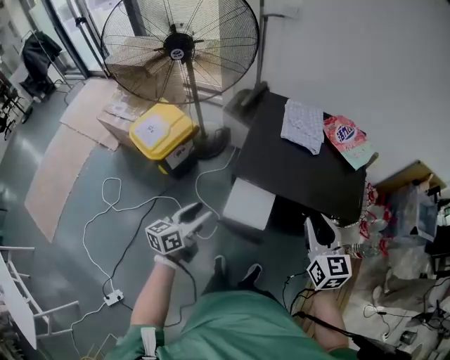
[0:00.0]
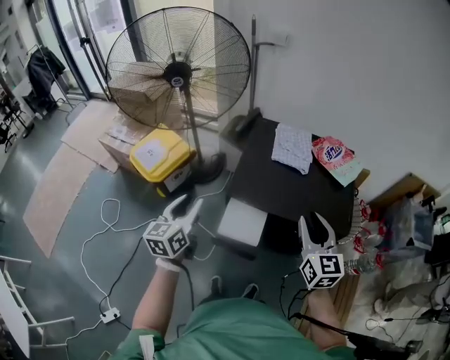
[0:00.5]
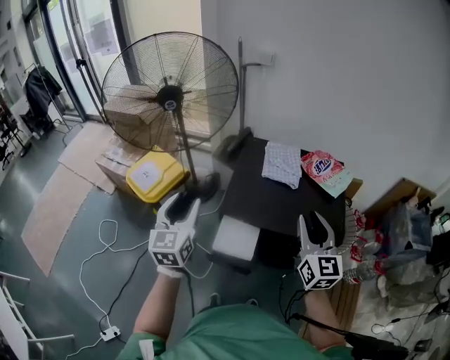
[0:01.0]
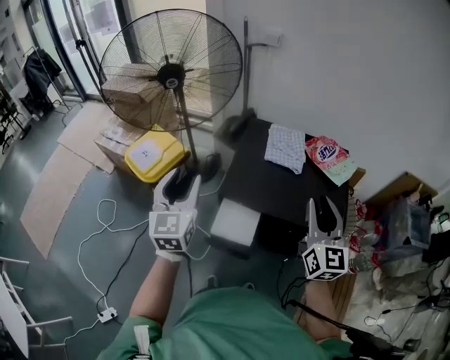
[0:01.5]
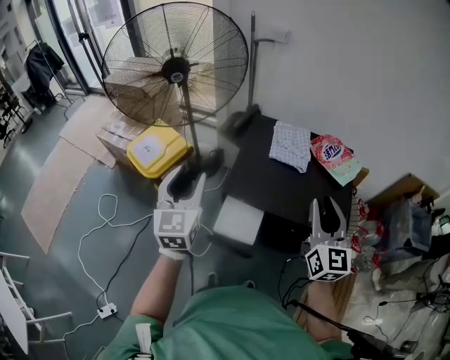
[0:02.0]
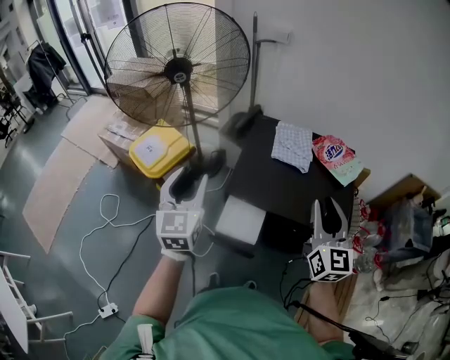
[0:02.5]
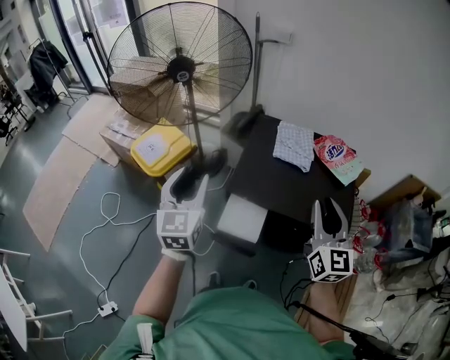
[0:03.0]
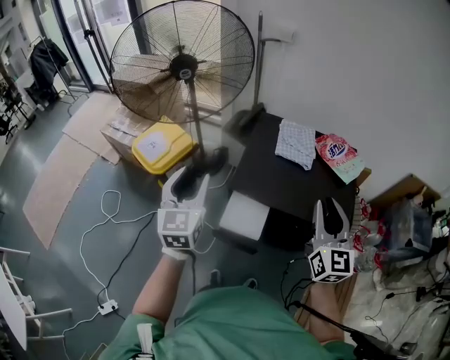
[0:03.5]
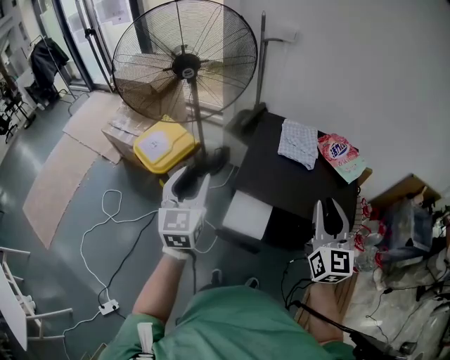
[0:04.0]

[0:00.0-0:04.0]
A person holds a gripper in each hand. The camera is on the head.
0:00.0 to 0:02.0: The right gripper is displaced upward and forward by some 15 cm, and rotates approximately 20 degrees. The left gripper goes roughly 20 cm upward, and rotates approximately 50 degrees.
0:02.0 to 0:04.0: The grippers make only small movements.

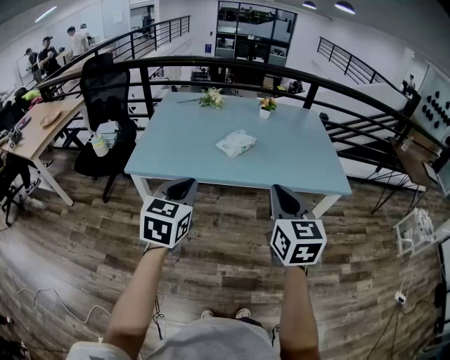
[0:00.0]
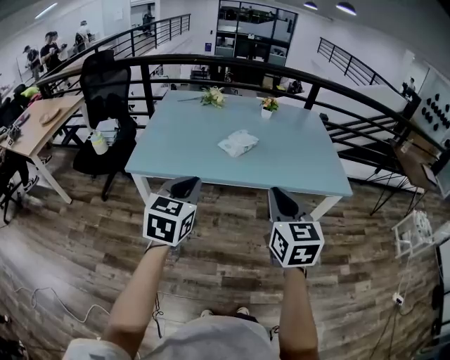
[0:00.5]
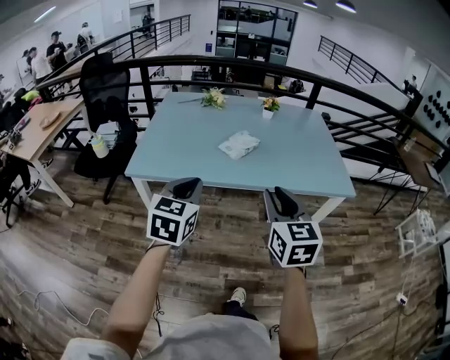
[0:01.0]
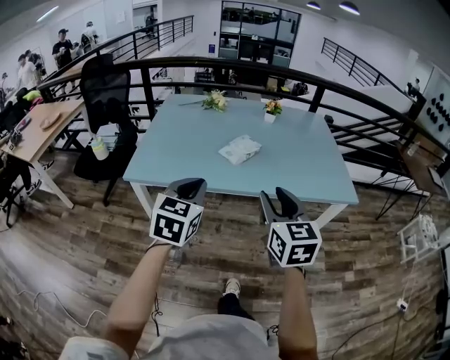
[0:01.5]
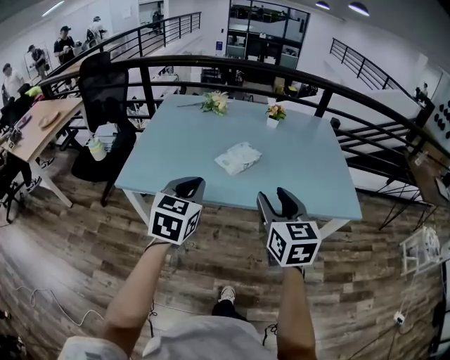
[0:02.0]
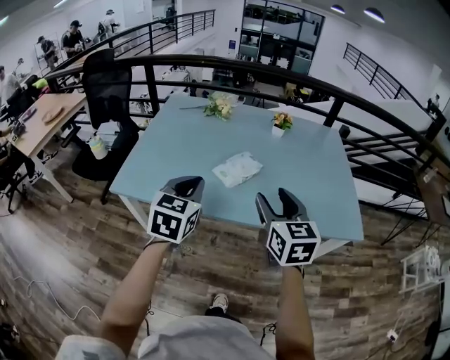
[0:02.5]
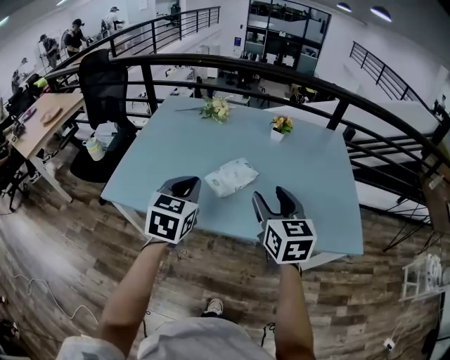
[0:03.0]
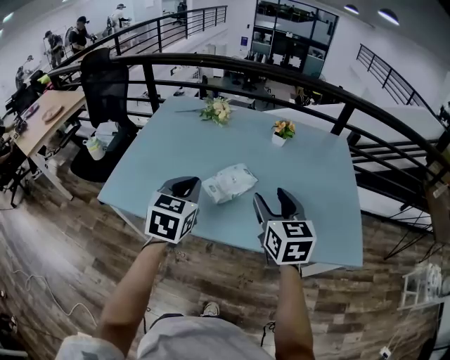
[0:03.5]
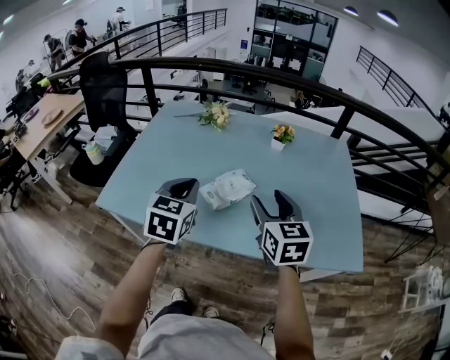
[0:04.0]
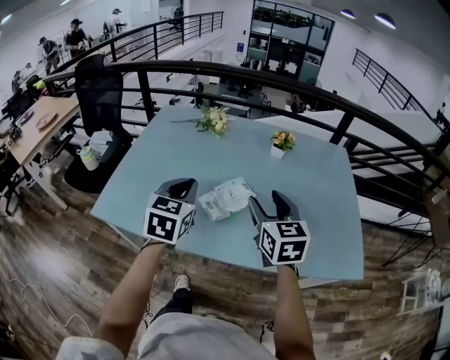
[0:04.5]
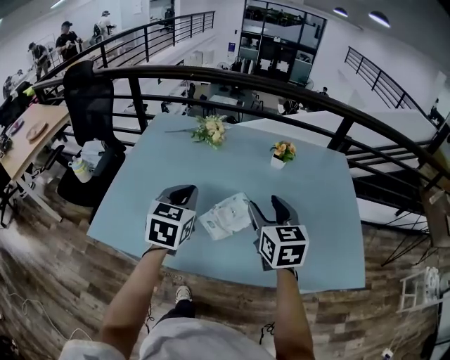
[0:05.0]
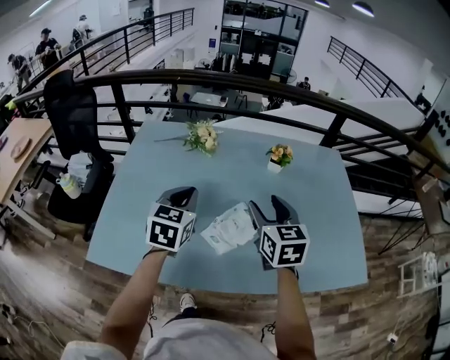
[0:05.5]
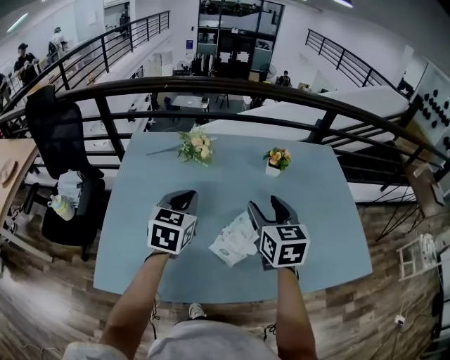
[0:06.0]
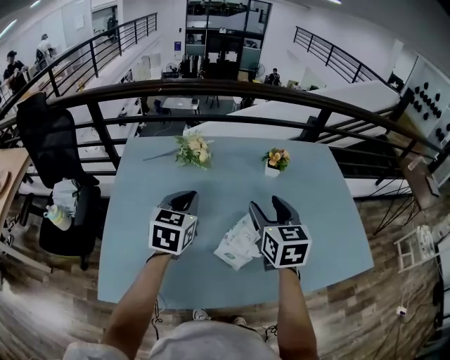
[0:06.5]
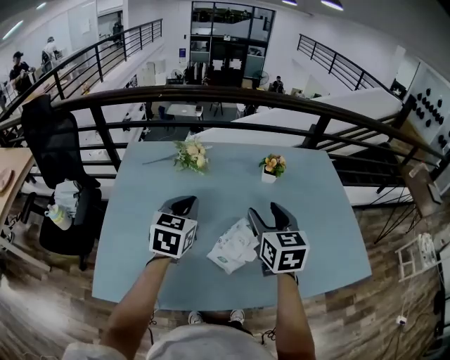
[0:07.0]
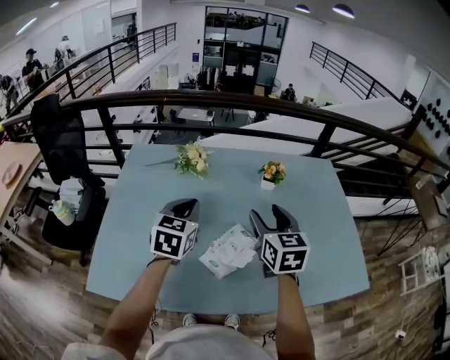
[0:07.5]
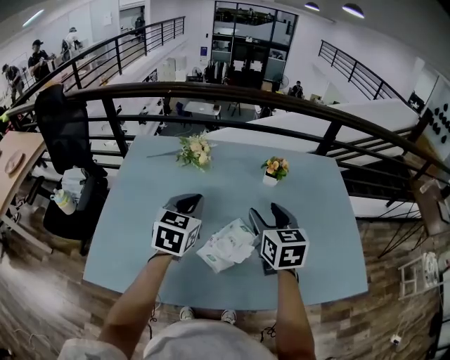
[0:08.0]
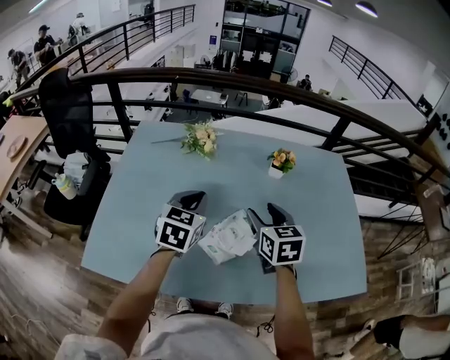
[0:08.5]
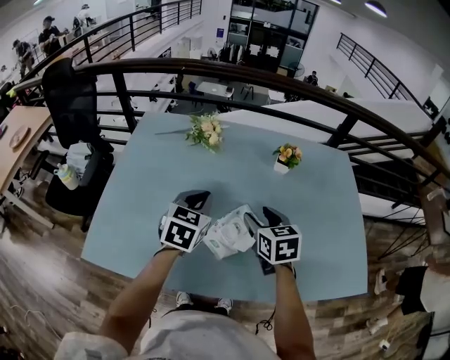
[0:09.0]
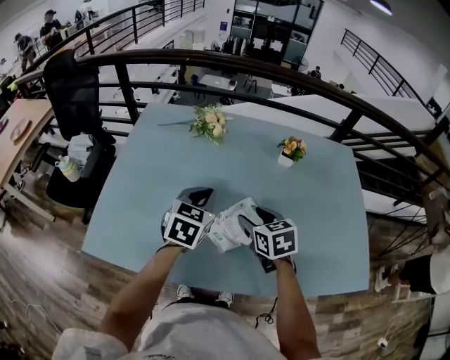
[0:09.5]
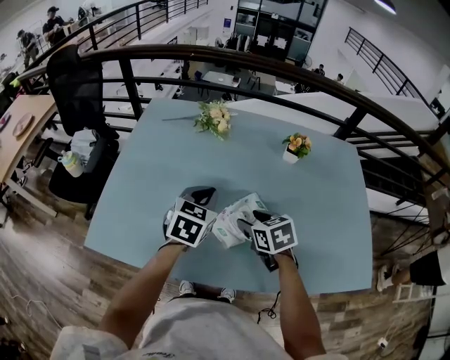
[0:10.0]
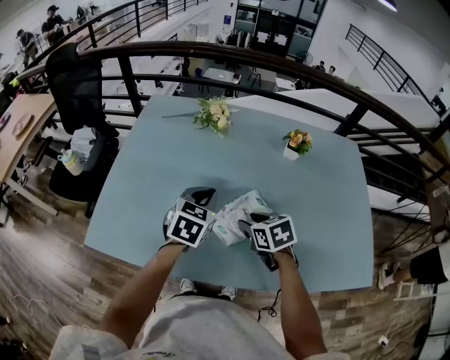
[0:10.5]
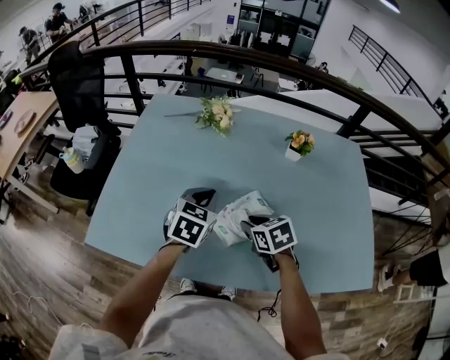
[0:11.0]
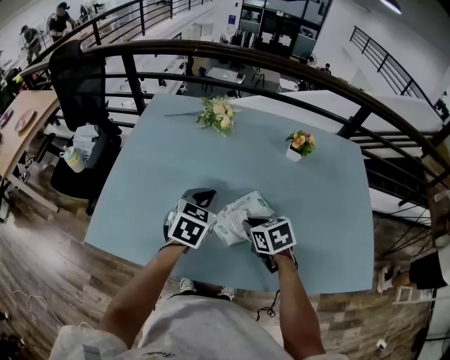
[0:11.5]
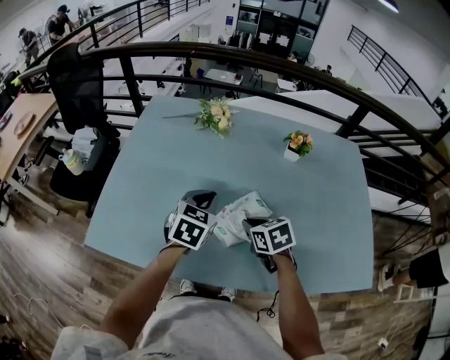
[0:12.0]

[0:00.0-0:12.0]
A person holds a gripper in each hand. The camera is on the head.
0:00.0 to 0:02.0: Both grippers travel together forward, roughly 15 cm. The right gripper opens up.
0:02.0 to 0:04.0: Both grippers move forward, some 20 cm.
0:04.0 to 0:06.0: The left gripper moves forward, some 20 cm. Meanwhile the right gripper shifts approximately 20 cm forward and to the left.
0:06.0 to 0:08.0: The grippers stay close to where they were, moving slightly.
0:08.0 to 0:10.0: The left gripper is displaced downward by about 10 cm; the right gripper goes roughly 15 cm downward and to the left, and rotates some 30 degrees.
0:10.0 to 0:12.0: The right gripper closes its fingers.

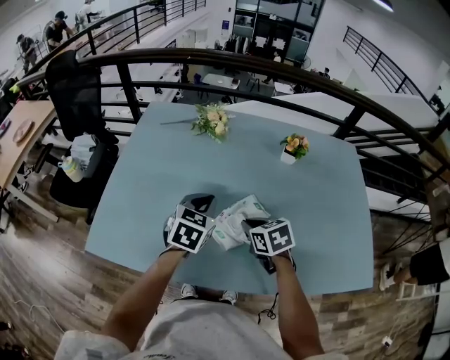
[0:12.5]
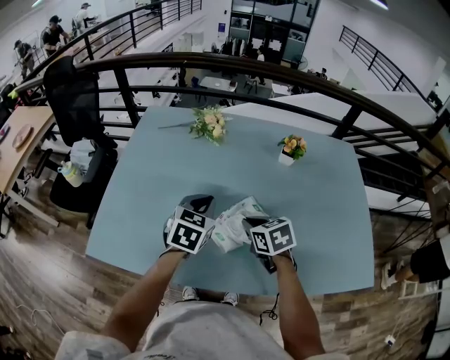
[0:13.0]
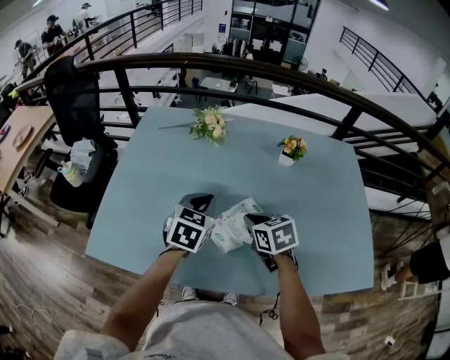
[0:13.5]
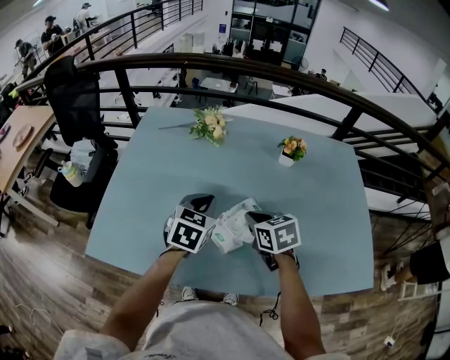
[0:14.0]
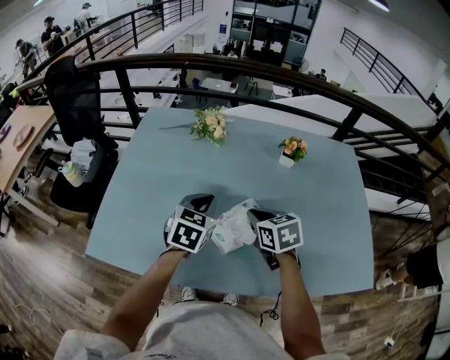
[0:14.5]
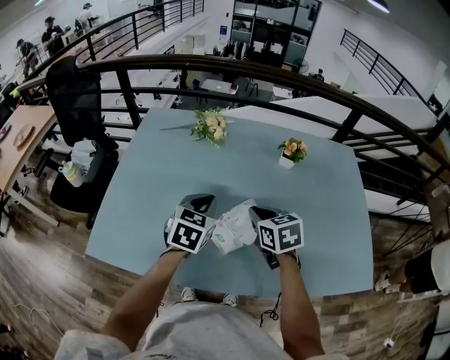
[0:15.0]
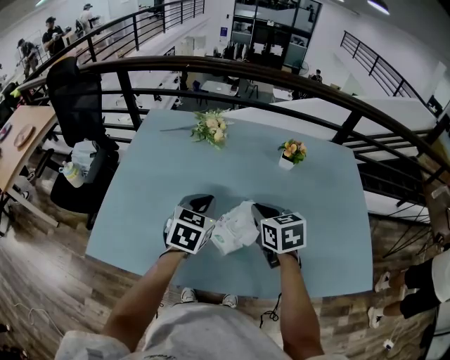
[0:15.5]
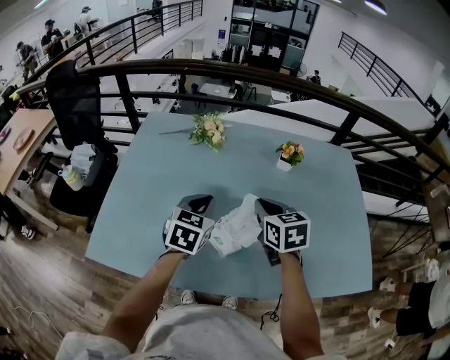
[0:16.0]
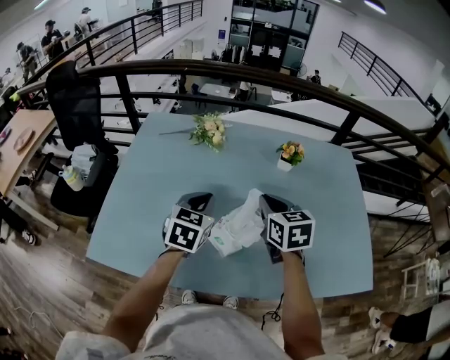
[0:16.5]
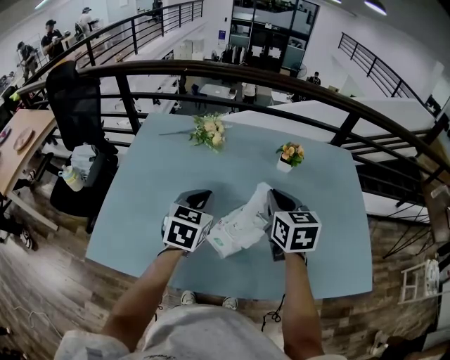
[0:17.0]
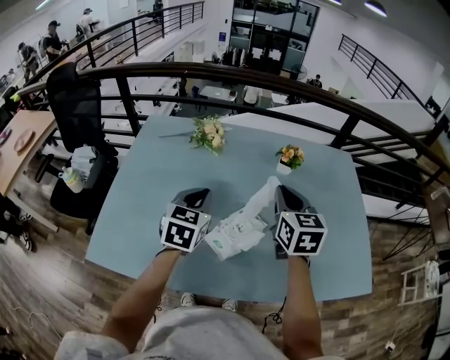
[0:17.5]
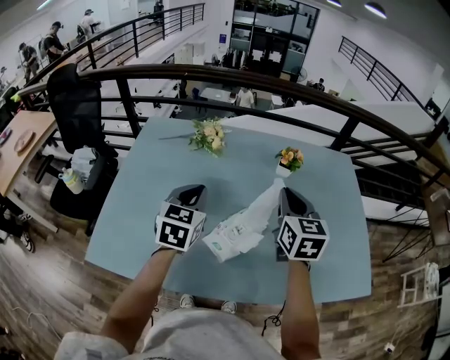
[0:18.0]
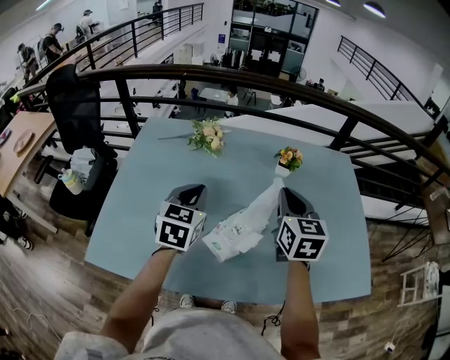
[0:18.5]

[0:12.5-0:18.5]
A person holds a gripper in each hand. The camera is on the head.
0:12.5 to 0:14.5: The right gripper ends up roughly 5 cm from where it was.
0:14.5 to 0:16.5: The right gripper heads upward, covering roughly 5 cm.
0:16.5 to 0:18.5: The left gripper ends up approximately 5 cm from where it was, while the right gripper moves upward and to the right, some 10 cm.

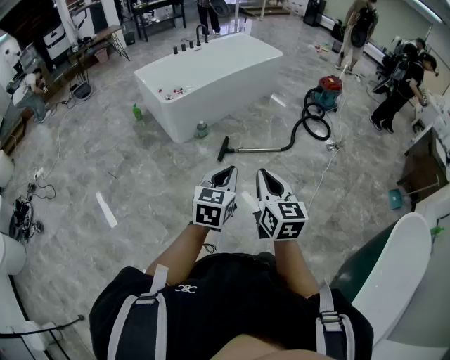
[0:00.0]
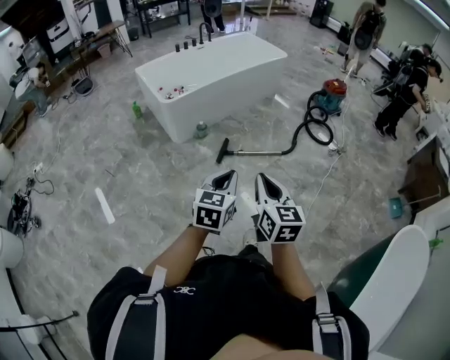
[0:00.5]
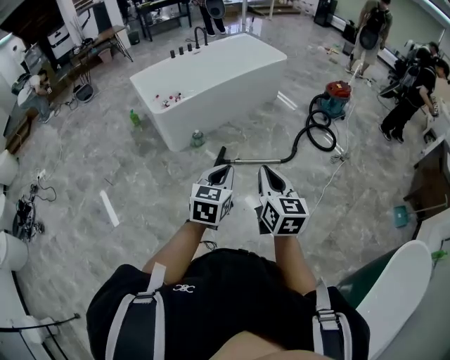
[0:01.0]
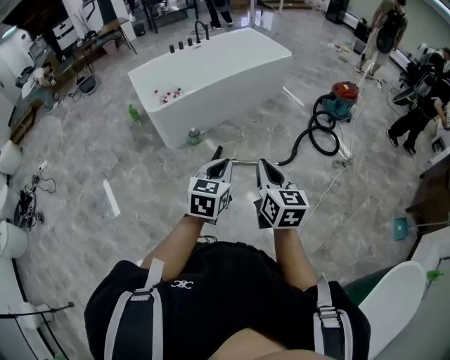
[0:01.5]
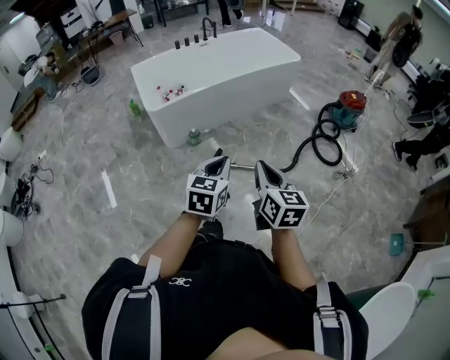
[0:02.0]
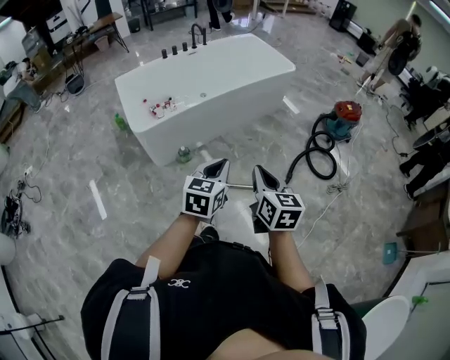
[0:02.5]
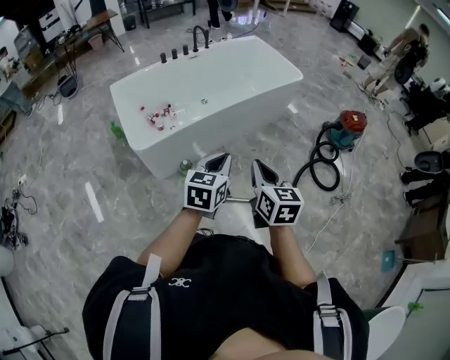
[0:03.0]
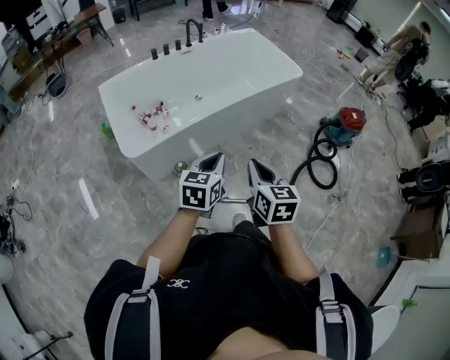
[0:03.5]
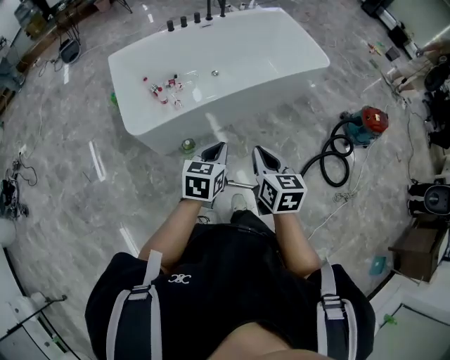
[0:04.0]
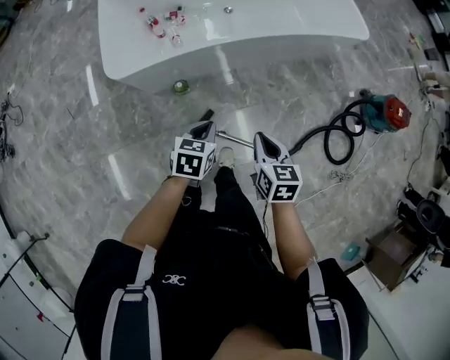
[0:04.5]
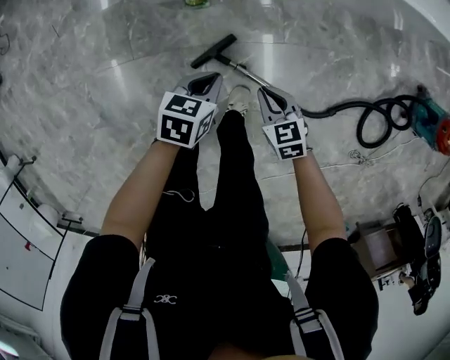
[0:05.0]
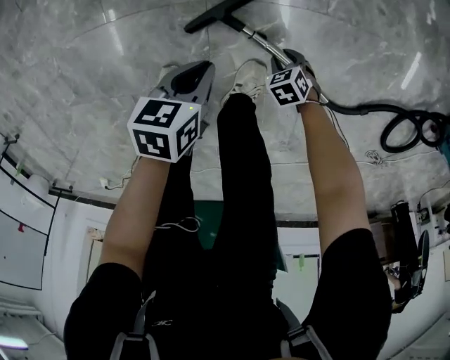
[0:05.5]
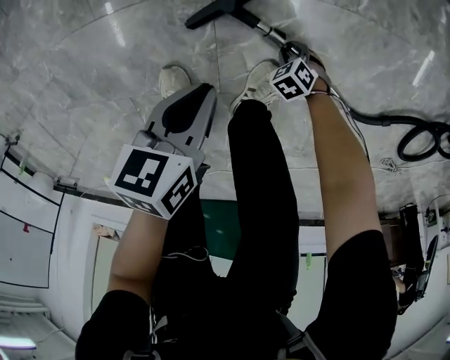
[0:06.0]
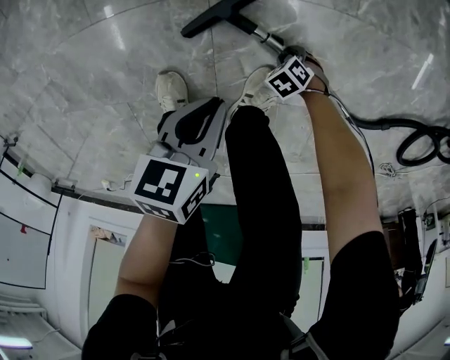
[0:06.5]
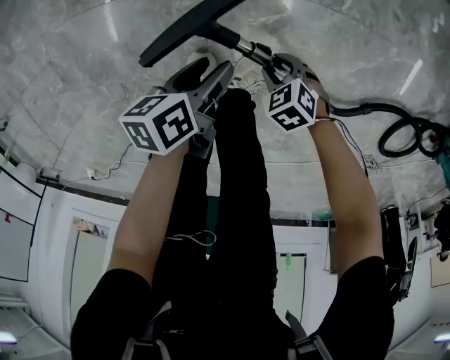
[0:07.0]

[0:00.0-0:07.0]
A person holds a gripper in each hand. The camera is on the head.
0:00.0 to 0:02.0: The grippers both shift forward and to the right by approximately 40 cm.
0:02.0 to 0:03.5: The two grippers travel together, forward, about 50 cm.
0:03.5 to 0:05.0: The two grippers go some 50 cm downward. The left gripper changes its angle by some 40 degrees. Meanwhile the right gripper changes its angle by about 60 degrees.
0:05.0 to 0:07.0: Both grippers travel together downward, about 30 cm. The left gripper rotates around the line of its fingers by about 40 degrees, counterclockwise from behind, and opens, while the right gripper changes its angle by about 40 degrees, and opens.
